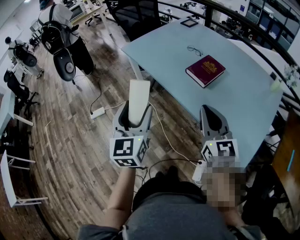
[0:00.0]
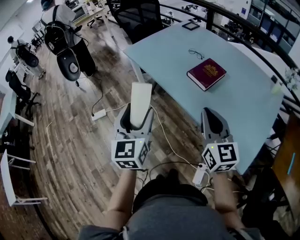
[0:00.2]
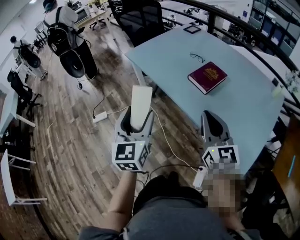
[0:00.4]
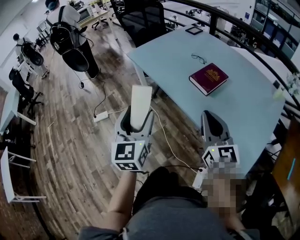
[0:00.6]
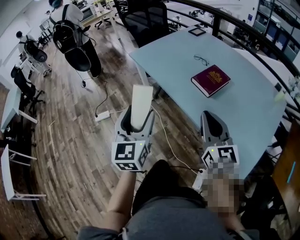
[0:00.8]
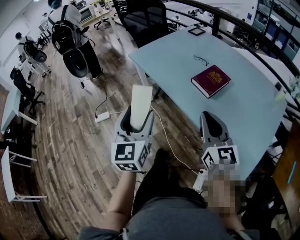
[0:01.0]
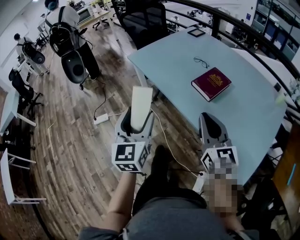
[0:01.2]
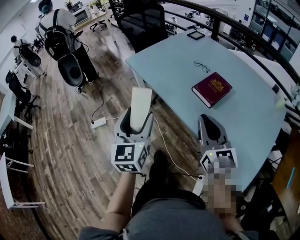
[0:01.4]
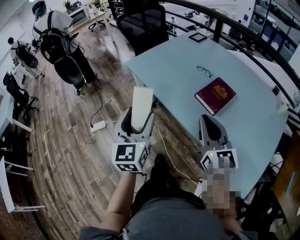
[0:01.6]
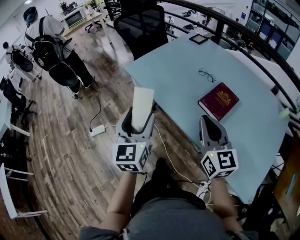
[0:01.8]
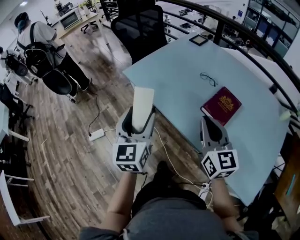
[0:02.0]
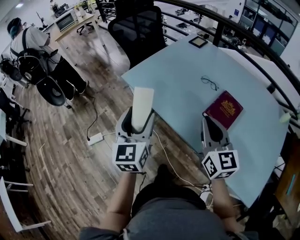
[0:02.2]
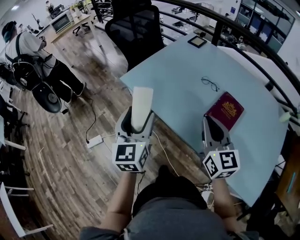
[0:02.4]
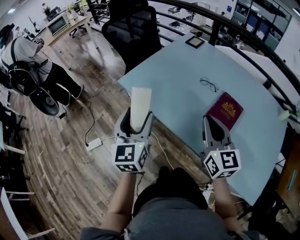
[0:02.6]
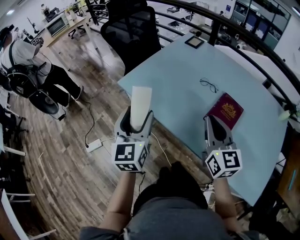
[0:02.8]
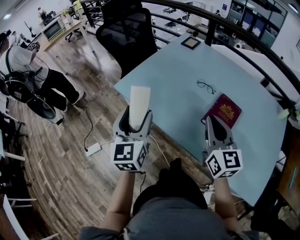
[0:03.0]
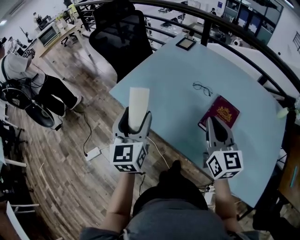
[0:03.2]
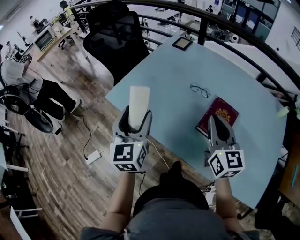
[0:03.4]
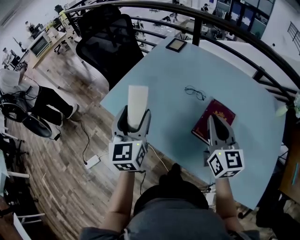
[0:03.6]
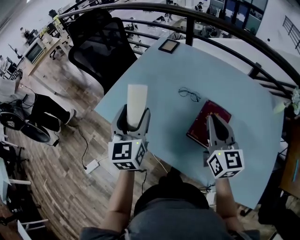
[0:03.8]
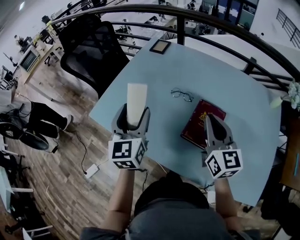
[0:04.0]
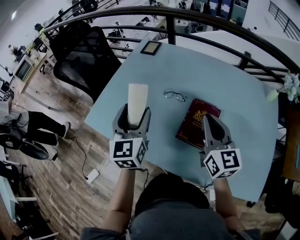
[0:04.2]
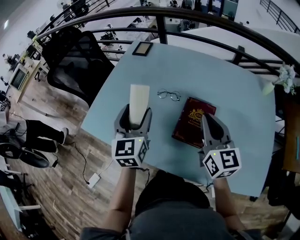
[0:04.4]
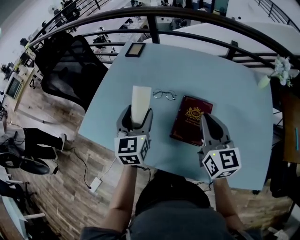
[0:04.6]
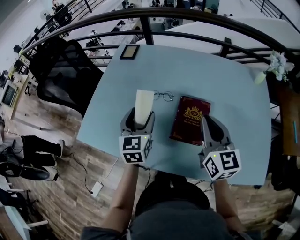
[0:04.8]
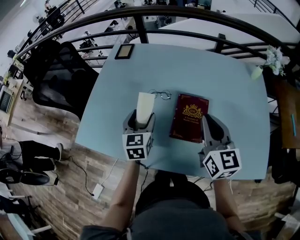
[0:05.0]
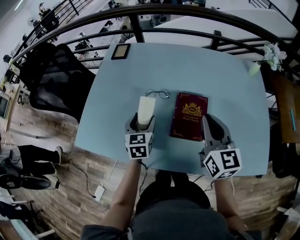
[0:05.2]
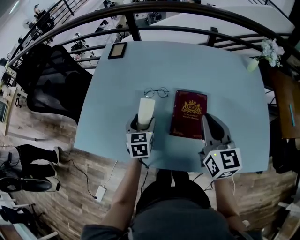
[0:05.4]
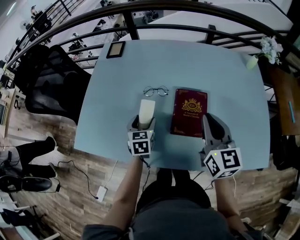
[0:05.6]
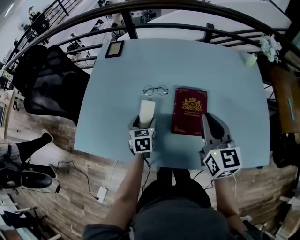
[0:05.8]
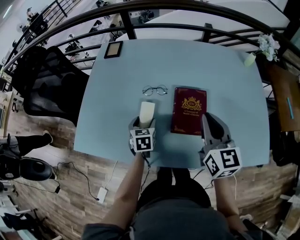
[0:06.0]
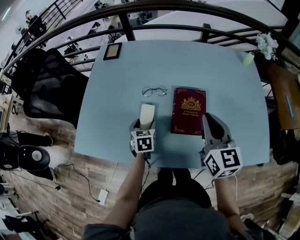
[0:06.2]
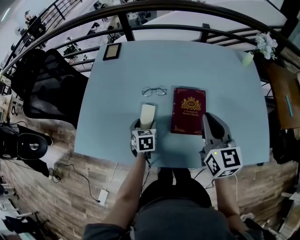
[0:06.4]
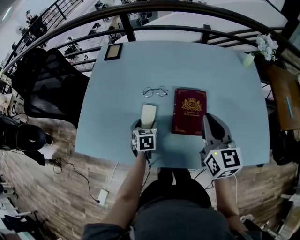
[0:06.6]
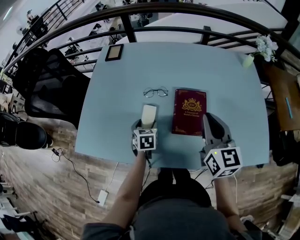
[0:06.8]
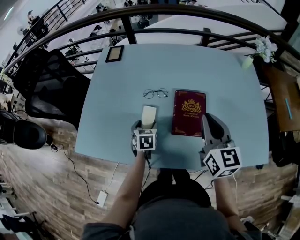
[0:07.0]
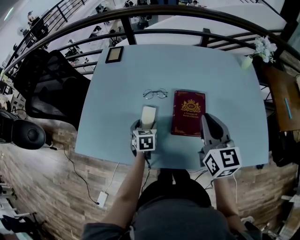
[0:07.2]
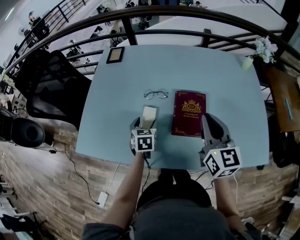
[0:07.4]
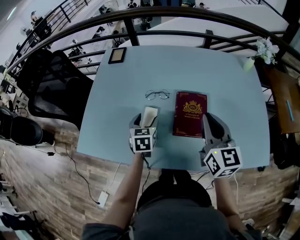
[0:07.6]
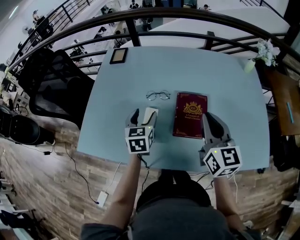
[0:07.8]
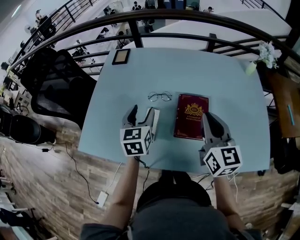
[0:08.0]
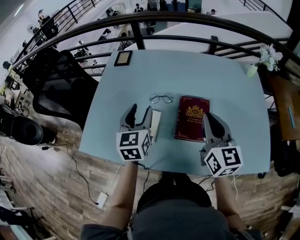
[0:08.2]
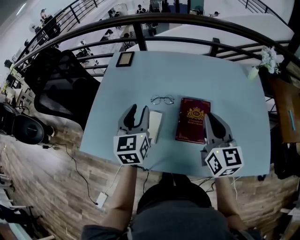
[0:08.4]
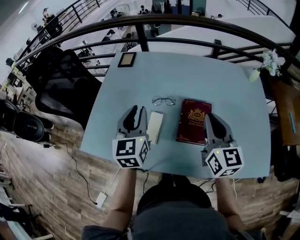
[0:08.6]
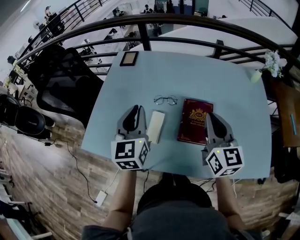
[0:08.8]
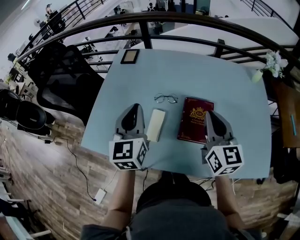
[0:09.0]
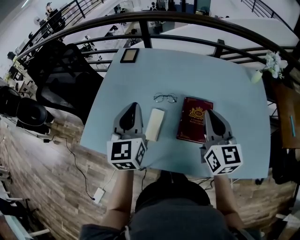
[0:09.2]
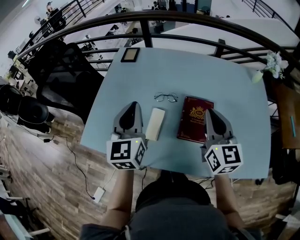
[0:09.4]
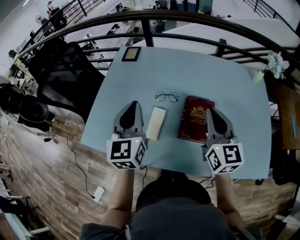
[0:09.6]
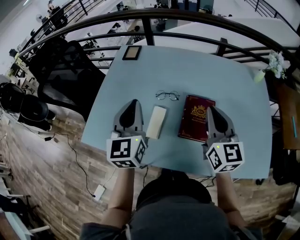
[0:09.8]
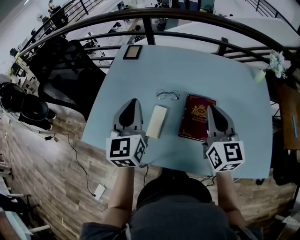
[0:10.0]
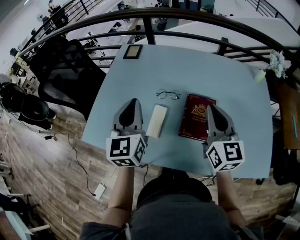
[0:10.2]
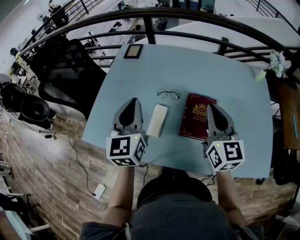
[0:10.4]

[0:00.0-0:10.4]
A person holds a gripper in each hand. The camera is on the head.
0.0 to 1.4 s: Both grippers travel together forward, roughly 5 cm.
1.4 to 3.0 s: Both grippers travel together forward, approximately 25 cm.
3.0 to 4.4 s: Both grippers move to the right and forward, some 20 cm.
4.4 to 6.0 s: The left gripper travels downward by roughly 25 cm, and tilts its fingers some 30 degrees downward.
6.0 to 7.4 s: The grippers move only a little.
7.4 to 9.0 s: The left gripper heads upward, covering roughly 25 cm, points its fingers some 40 degrees further upward, and closes.
9.0 to 10.4 s: The grippers stay close to where they were, moving slightly.

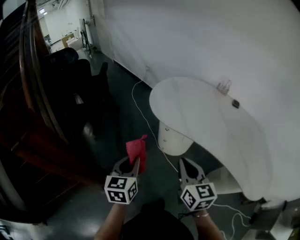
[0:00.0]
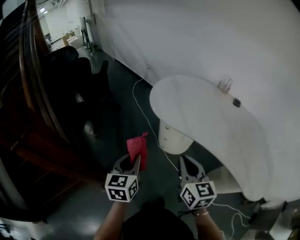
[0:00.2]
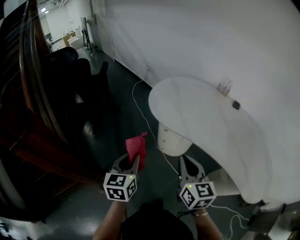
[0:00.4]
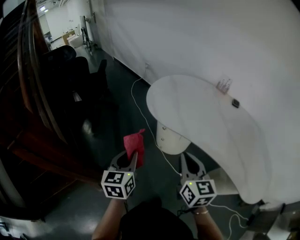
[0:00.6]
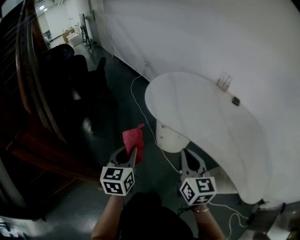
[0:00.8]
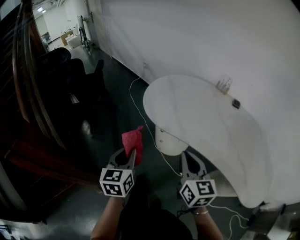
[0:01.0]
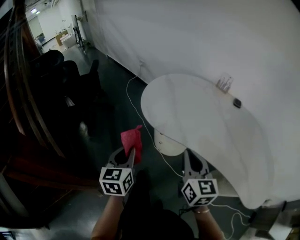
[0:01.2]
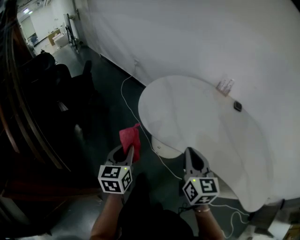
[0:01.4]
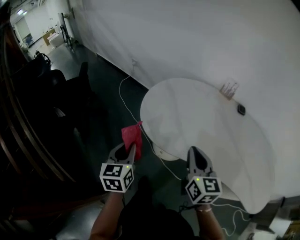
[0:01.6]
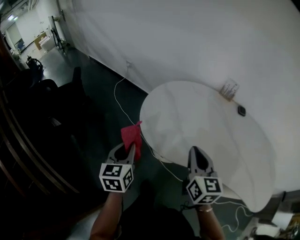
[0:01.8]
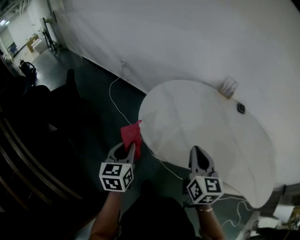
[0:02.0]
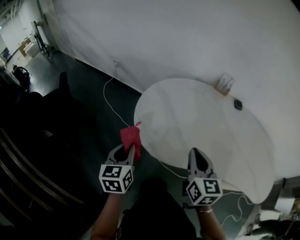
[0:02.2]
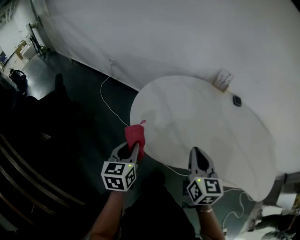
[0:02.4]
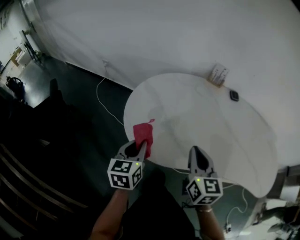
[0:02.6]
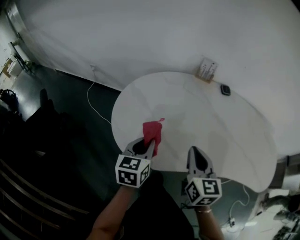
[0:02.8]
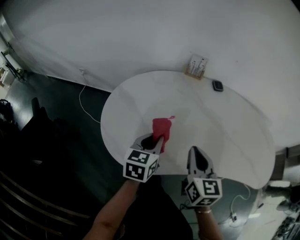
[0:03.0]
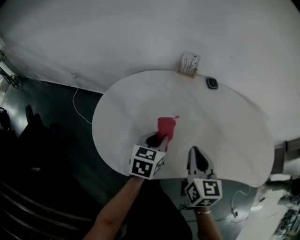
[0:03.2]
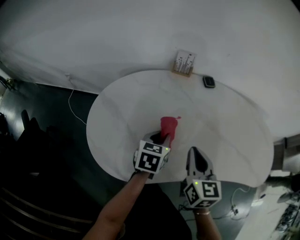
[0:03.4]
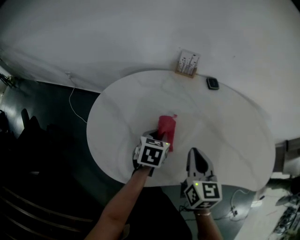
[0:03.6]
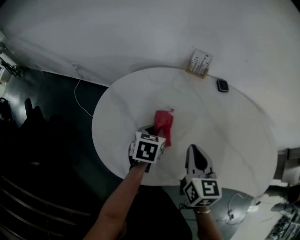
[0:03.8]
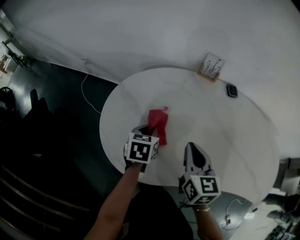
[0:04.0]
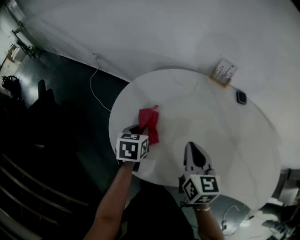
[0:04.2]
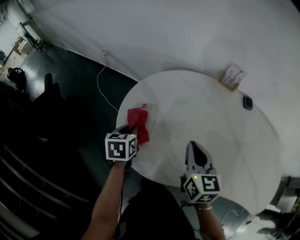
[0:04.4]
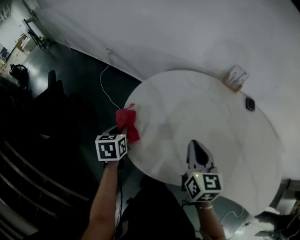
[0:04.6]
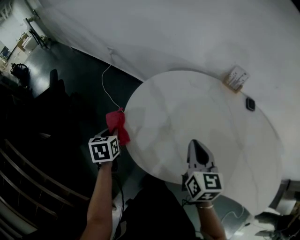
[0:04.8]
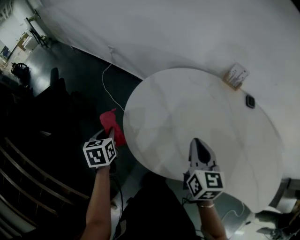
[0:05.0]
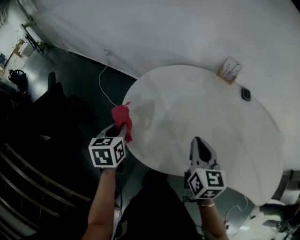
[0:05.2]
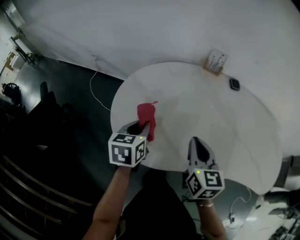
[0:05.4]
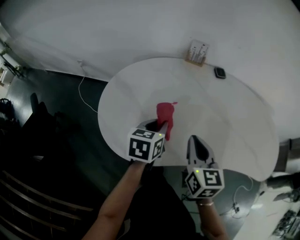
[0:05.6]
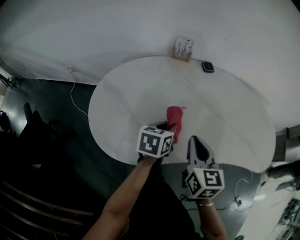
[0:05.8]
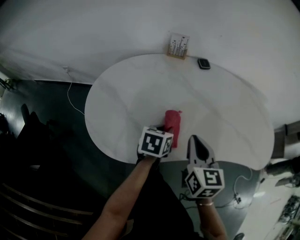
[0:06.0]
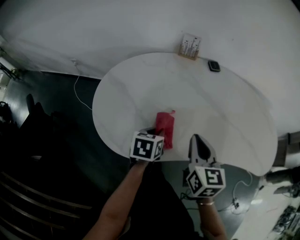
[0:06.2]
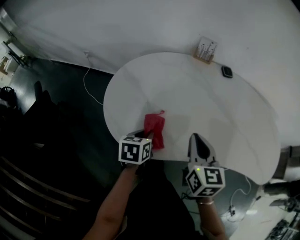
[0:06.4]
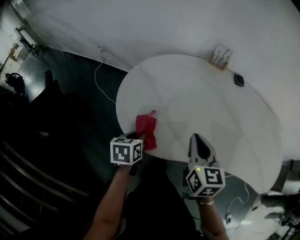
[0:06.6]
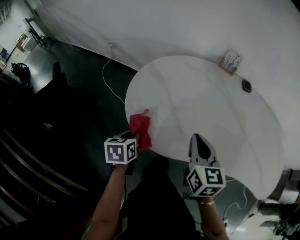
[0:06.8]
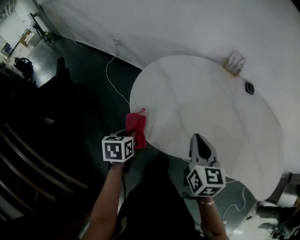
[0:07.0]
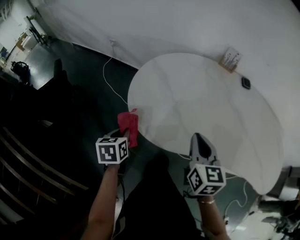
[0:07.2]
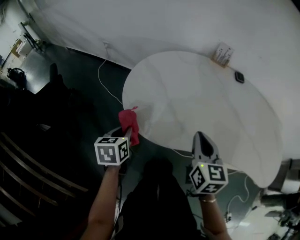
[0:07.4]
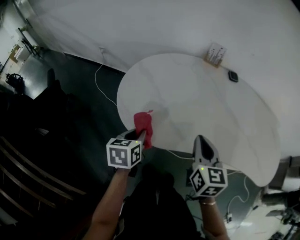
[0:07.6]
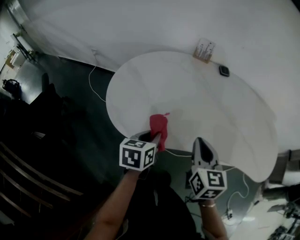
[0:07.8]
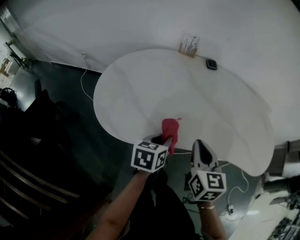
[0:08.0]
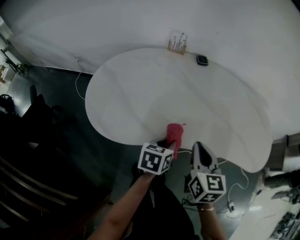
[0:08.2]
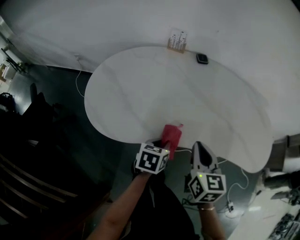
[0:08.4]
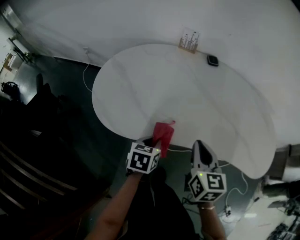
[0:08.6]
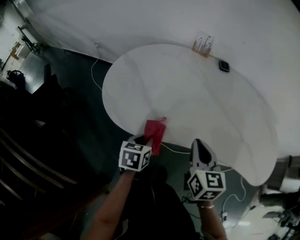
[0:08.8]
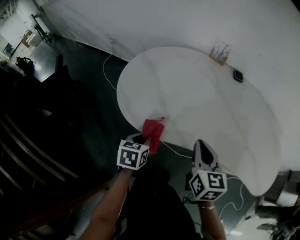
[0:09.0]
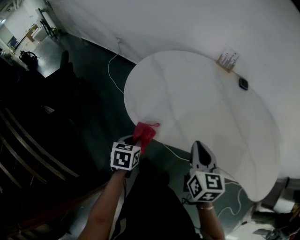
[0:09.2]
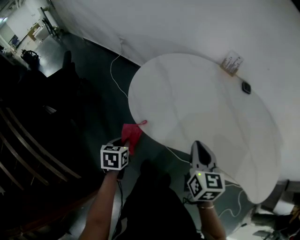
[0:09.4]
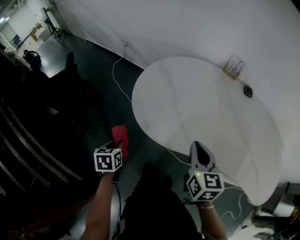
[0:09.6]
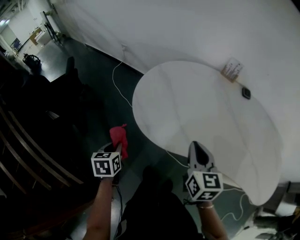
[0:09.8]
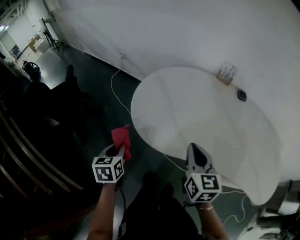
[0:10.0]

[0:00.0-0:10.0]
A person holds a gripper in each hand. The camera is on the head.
0.0 to 1.4 s: Both grippers travel together forward, approximately 15 cm.
1.4 to 2.8 s: The right gripper ends up roughly 15 cm from where it was, and rotates approximately 30 degrees. The left gripper shifts by roughly 25 cm, and rotates roughly 30 degrees.
2.8 to 4.2 s: The left gripper heads forward, downward and to the left, covering some 15 cm, and changes its angle by some 20 degrees. The right gripper is displaced forward by roughly 10 cm.
4.2 to 5.8 s: The left gripper shifts by approximately 25 cm, and changes its angle by about 30 degrees. Meanwhile the right gripper shifts by about 15 cm.
5.8 to 7.2 s: The right gripper moves approximately 10 cm. Meanwhile the left gripper ends up some 35 cm from where it was, and turns by roughly 40 degrees.
7.2 to 8.6 s: The left gripper ends up about 30 cm from where it was, and changes its angle by approximately 30 degrees, while the right gripper ends up about 20 cm from where it was.
8.6 to 10.0 s: The right gripper moves about 15 cm. Meanwhile the left gripper ends up approximately 30 cm from where it was, and changes its angle by approximately 40 degrees.

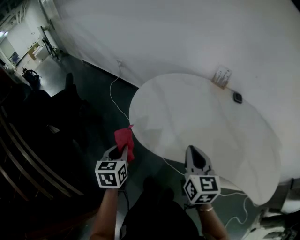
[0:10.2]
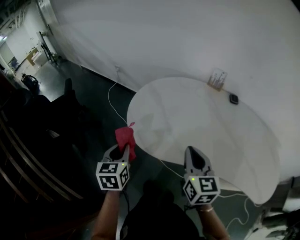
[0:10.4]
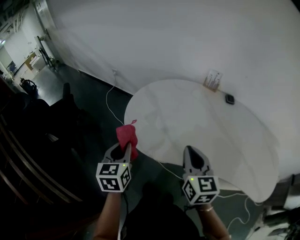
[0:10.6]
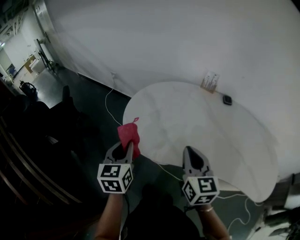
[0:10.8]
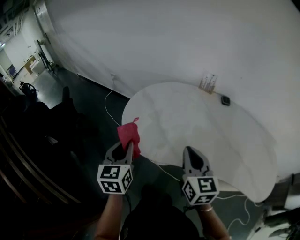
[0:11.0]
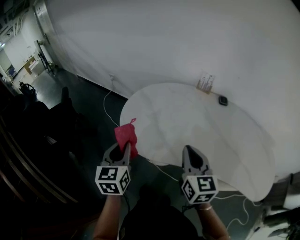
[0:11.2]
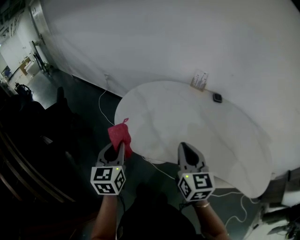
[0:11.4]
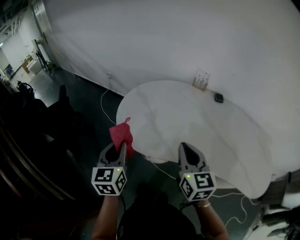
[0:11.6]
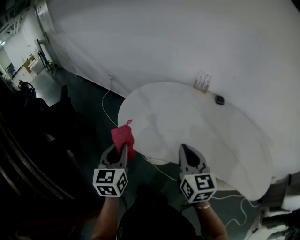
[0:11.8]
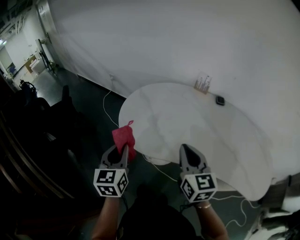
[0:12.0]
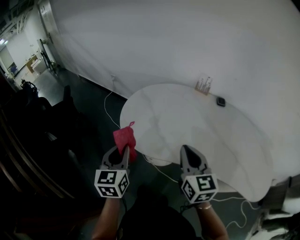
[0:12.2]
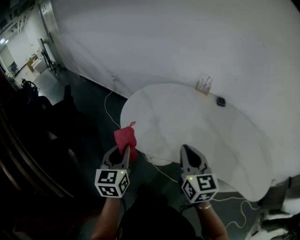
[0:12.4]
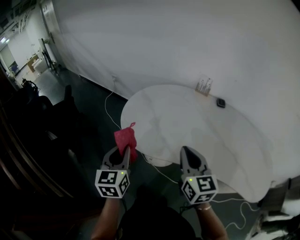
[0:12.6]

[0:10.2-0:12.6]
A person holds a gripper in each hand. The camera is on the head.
10.2 to 11.4 s: The left gripper goes some 10 cm upward and to the right, and swivels roughly 20 degrees. The right gripper ends up about 5 cm from where it was.
11.4 to 12.6 s: There are only small adjustments of the grippers.

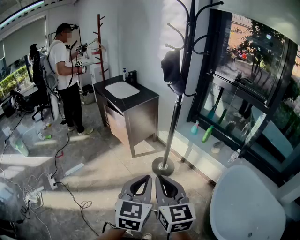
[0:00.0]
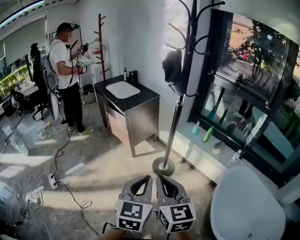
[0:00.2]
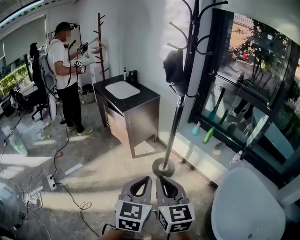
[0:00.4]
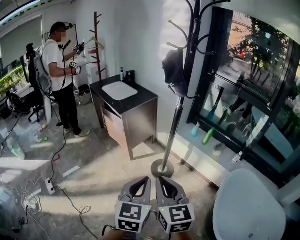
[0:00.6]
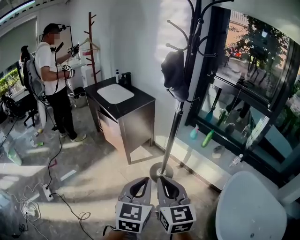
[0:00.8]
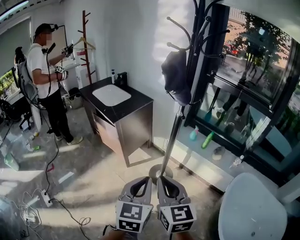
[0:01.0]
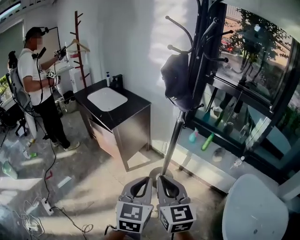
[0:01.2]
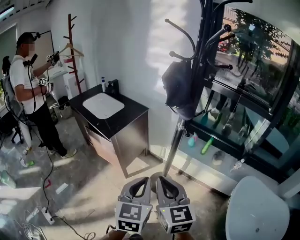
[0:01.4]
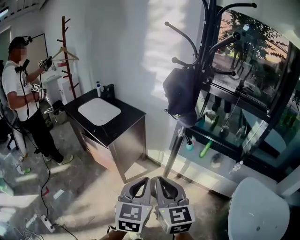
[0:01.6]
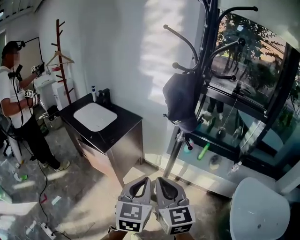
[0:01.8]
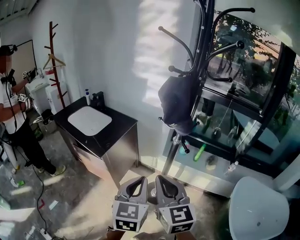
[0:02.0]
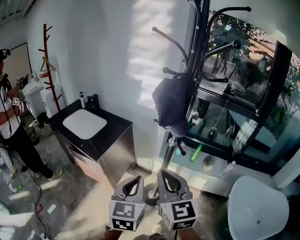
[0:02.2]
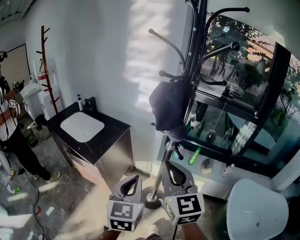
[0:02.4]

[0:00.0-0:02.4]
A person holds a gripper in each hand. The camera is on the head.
0.0 to 1.2 s: The grippers both shift forward by about 20 cm.
1.2 to 2.4 s: The left gripper shifts about 15 cm forward; the right gripper travels forward and upward by roughly 20 cm.
